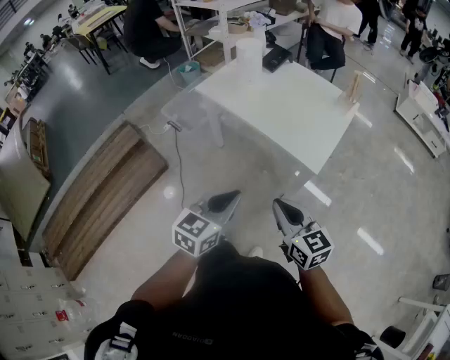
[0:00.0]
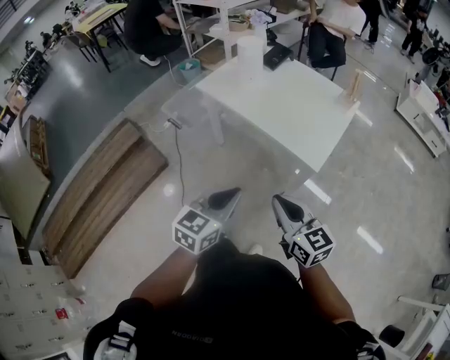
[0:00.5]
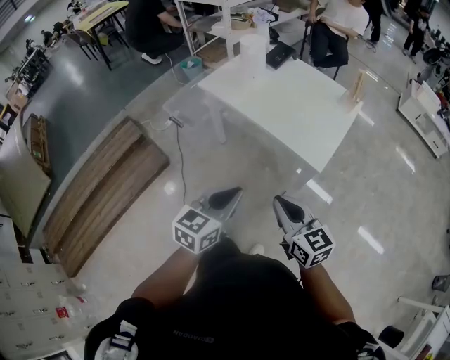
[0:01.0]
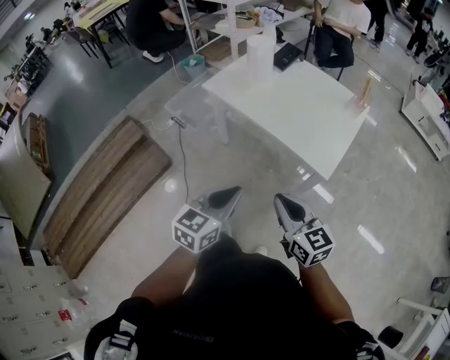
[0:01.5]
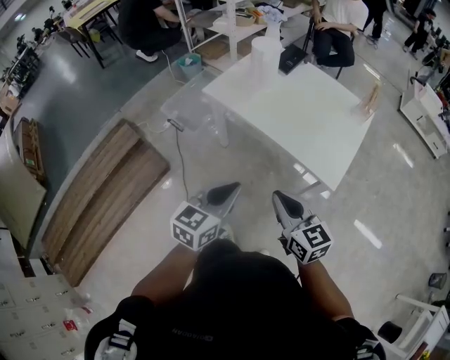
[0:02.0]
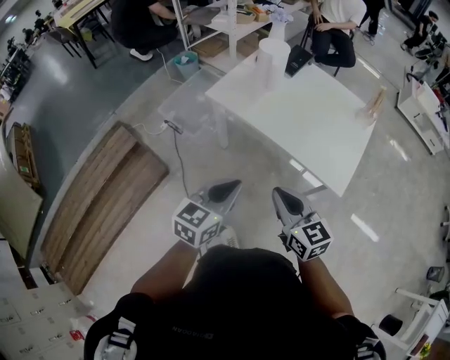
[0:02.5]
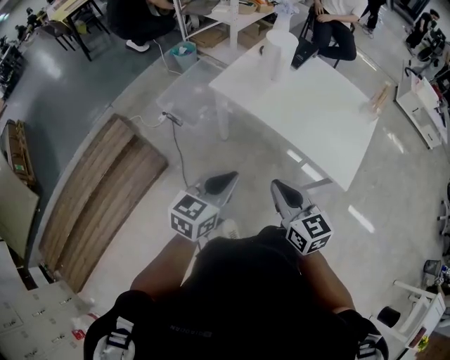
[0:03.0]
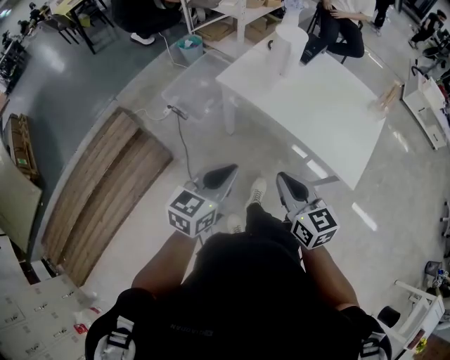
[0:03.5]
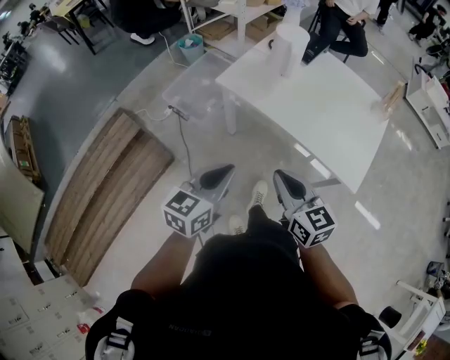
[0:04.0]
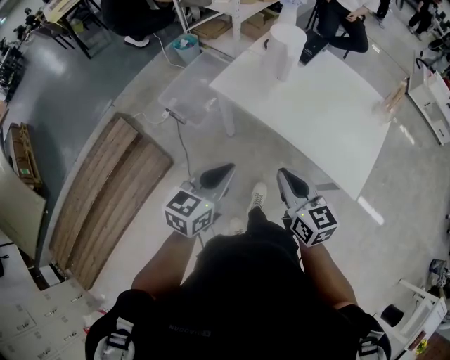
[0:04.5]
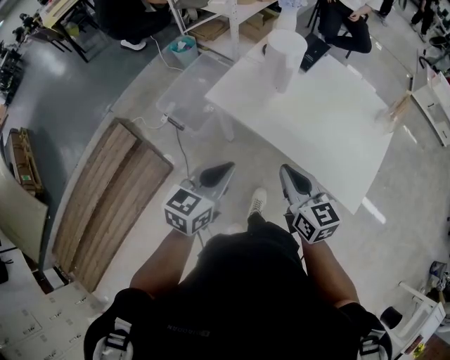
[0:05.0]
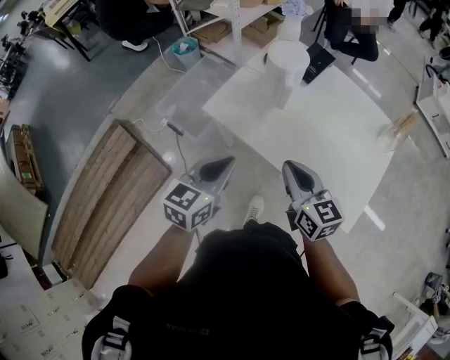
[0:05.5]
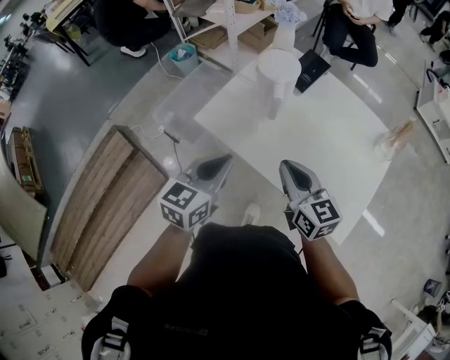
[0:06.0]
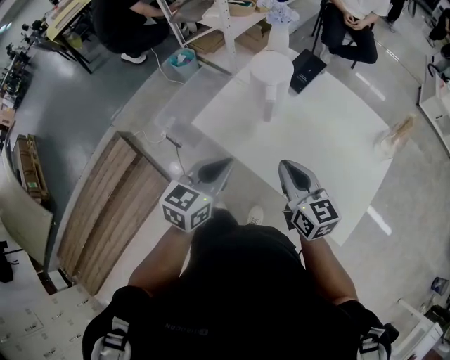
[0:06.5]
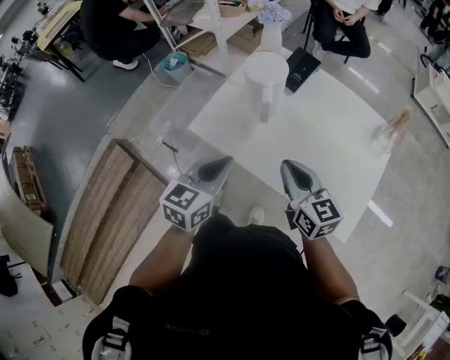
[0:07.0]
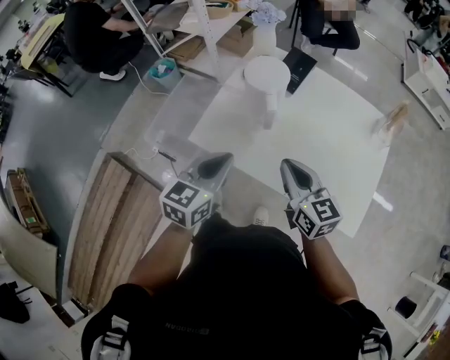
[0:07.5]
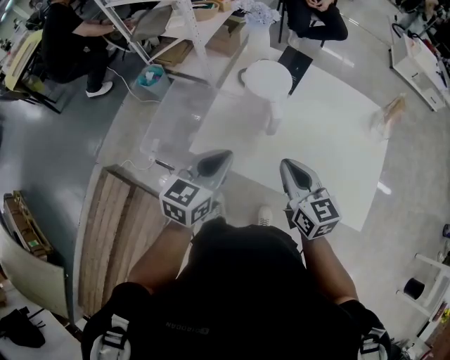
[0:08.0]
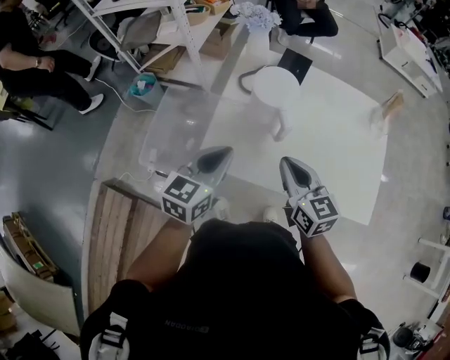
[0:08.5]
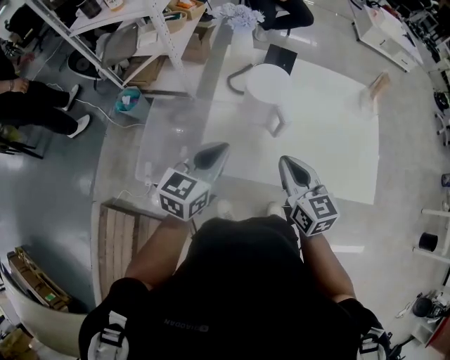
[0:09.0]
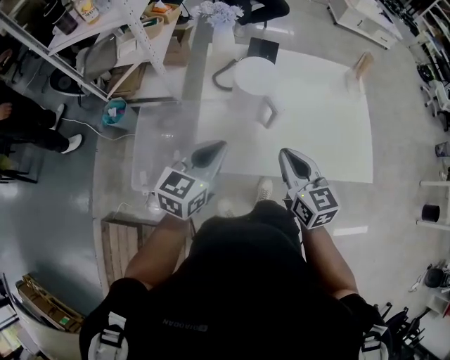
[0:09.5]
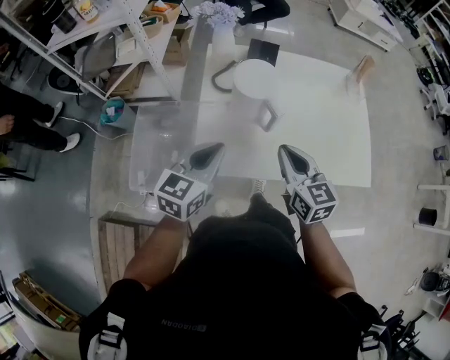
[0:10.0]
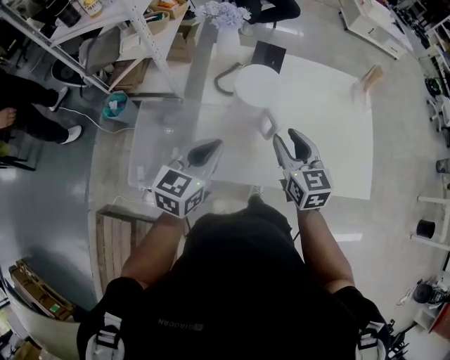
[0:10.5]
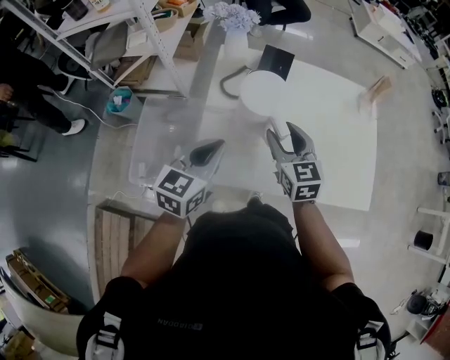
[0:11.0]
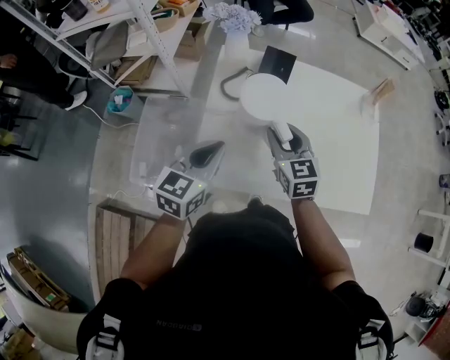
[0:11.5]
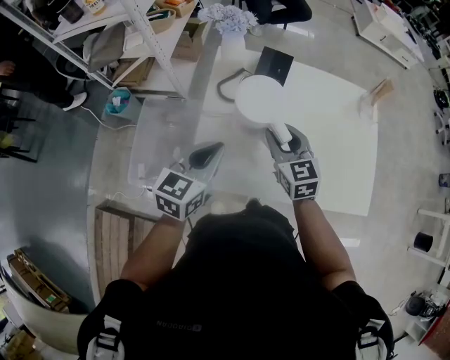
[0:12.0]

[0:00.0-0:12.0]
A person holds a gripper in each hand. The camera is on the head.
0:00.0 to 0:02.0: The grippers both shift forward and to the left by about 15 cm.
0:02.0 to 0:04.0: Both grippers travel together to the left and forward, roughly 15 cm.
0:04.0 to 0:06.0: Both grippers move forward, some 25 cm.
0:06.0 to 0:08.0: The right gripper goes some 5 cm forward; the left gripper goes approximately 10 cm forward.
0:08.0 to 0:10.0: Both grippers travel together to the left, about 5 cm. The right gripper changes its angle by approximately 20 degrees.
0:10.0 to 0:12.0: The right gripper goes roughly 15 cm forward, and opens. Meanwhile the left gripper heads forward, covering approximately 5 cm.

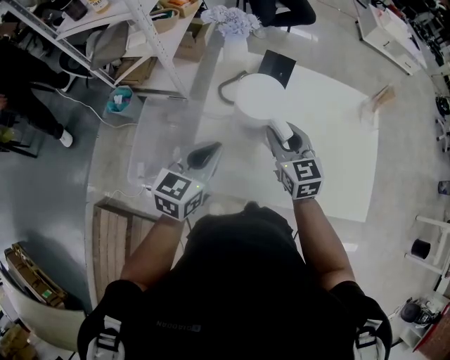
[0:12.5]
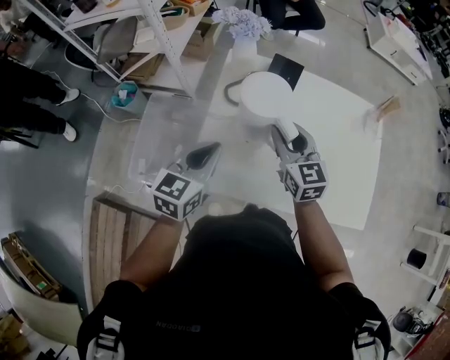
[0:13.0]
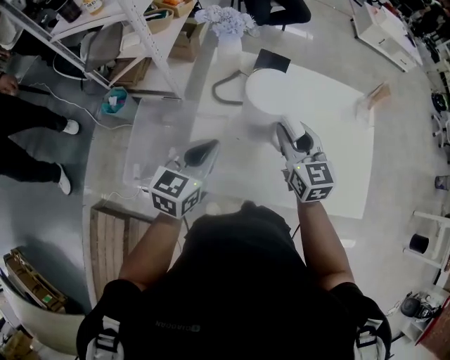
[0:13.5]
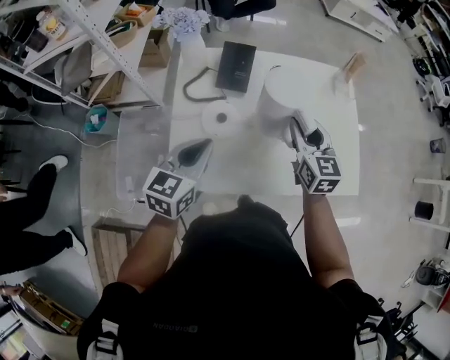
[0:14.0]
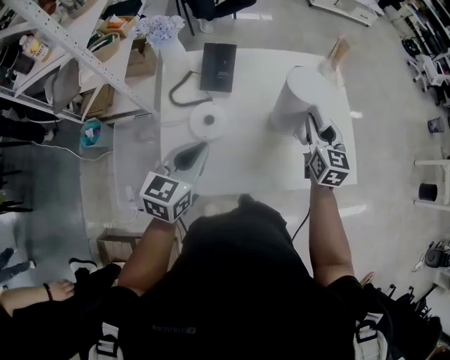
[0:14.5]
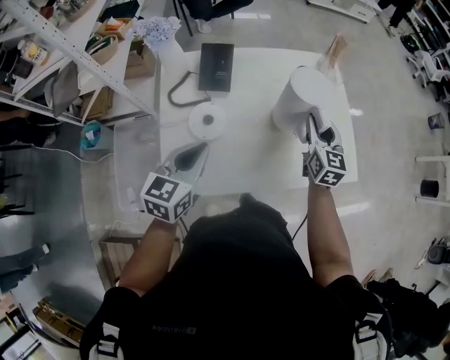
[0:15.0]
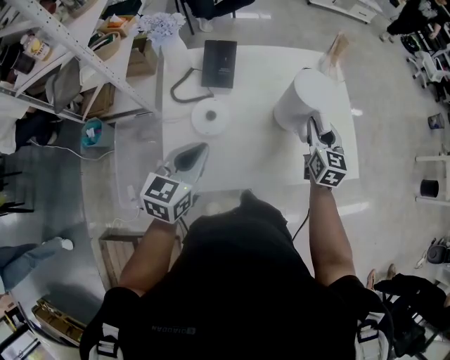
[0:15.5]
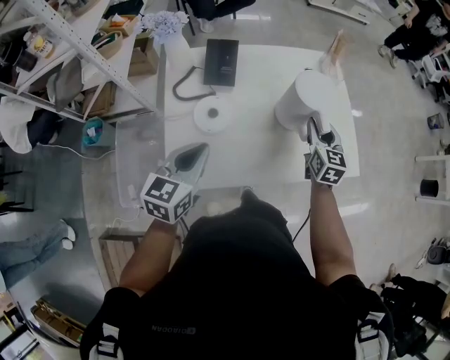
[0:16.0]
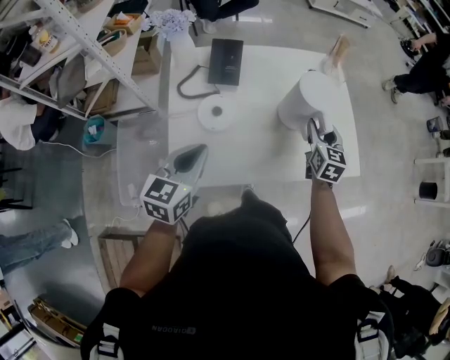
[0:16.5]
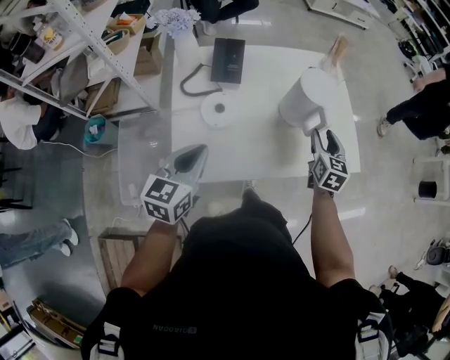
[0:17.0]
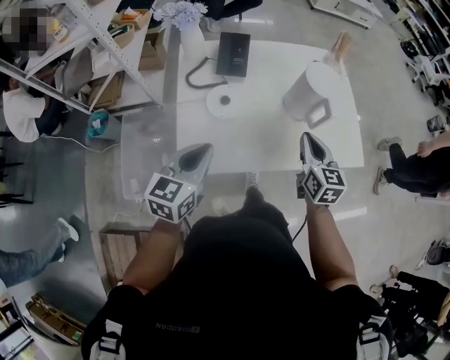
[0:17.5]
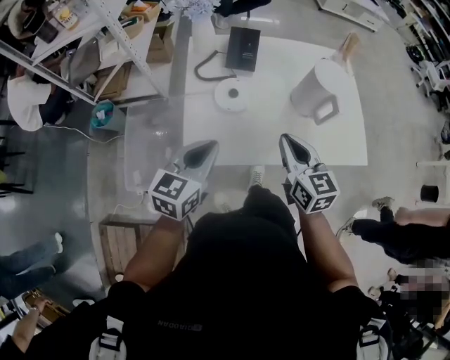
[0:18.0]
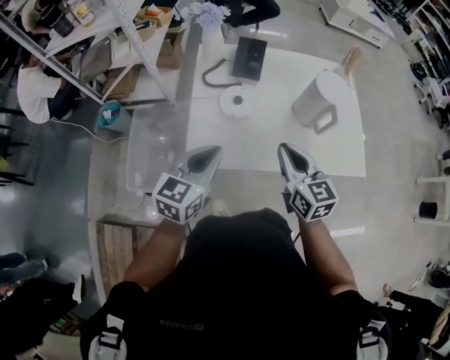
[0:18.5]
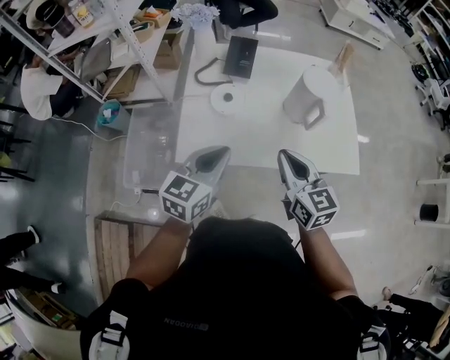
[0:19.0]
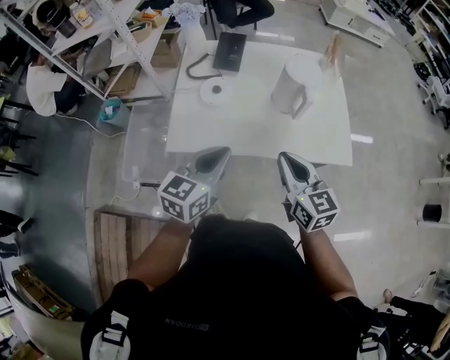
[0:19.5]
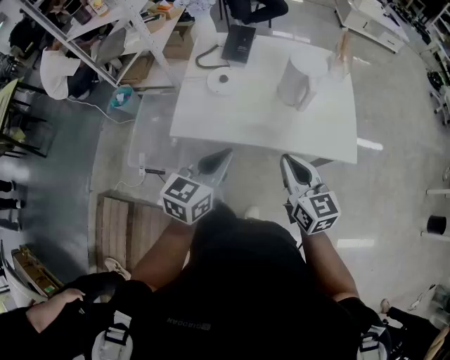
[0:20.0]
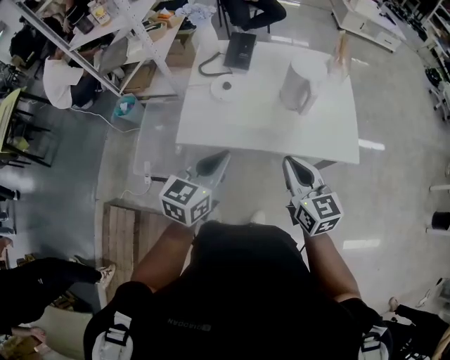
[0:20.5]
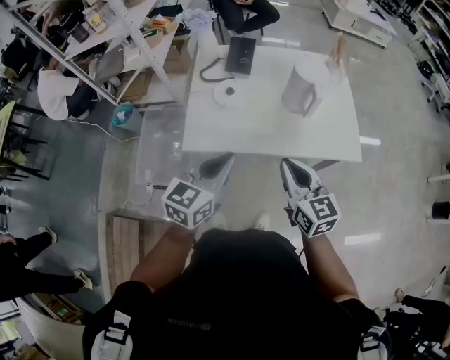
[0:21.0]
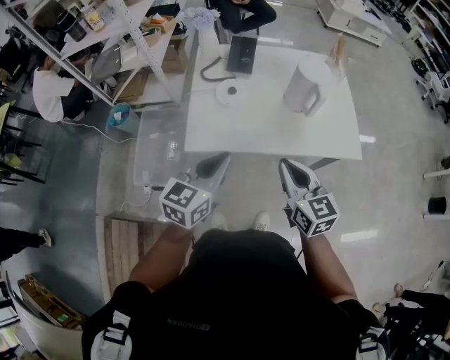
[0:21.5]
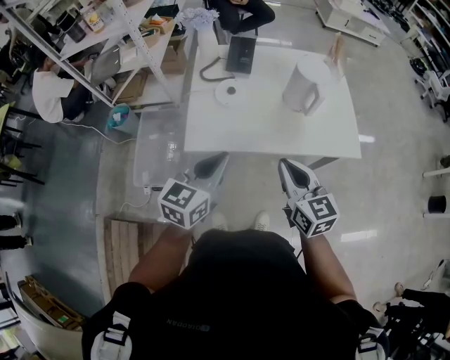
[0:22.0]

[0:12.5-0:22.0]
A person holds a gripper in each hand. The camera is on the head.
0:12.5 to 0:14.5: The right gripper moves to the right, approximately 25 cm, and swivels some 30 degrees, while the left gripper shifts roughly 10 cm to the right.
0:14.5 to 0:16.5: The right gripper changes place by approximately 5 cm, while the left gripper moves backward, roughly 5 cm.
0:16.5 to 0:18.0: The left gripper moves backward, some 10 cm. Meanwhile the right gripper travels backward and to the left by about 25 cm, changes its angle by some 30 degrees, and closes up.
0:18.0 to 0:20.0: The right gripper goes roughly 20 cm backward and to the right. Meanwhile the left gripper travels to the right and backward by about 20 cm.
0:20.0 to 0:22.0: The grippers both shift to the left by some 10 cm.

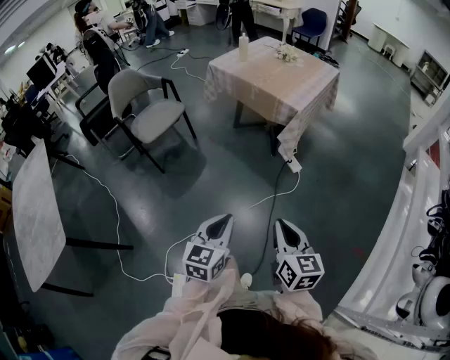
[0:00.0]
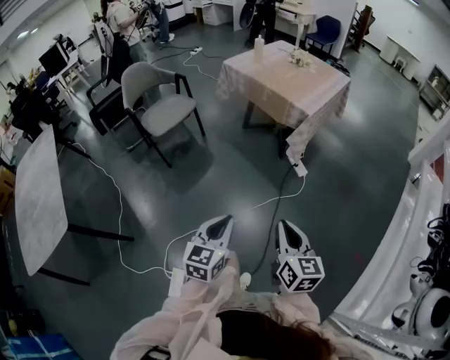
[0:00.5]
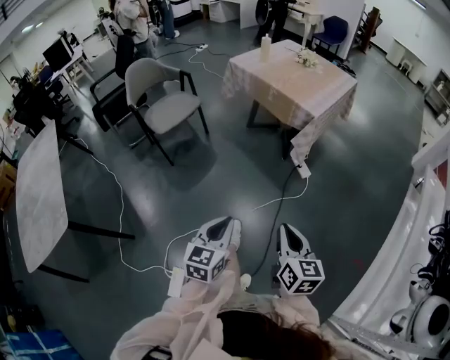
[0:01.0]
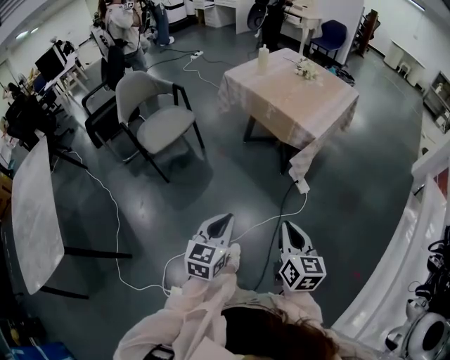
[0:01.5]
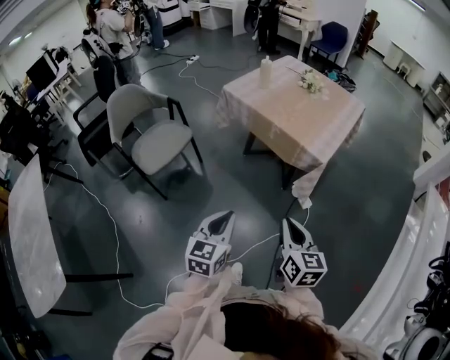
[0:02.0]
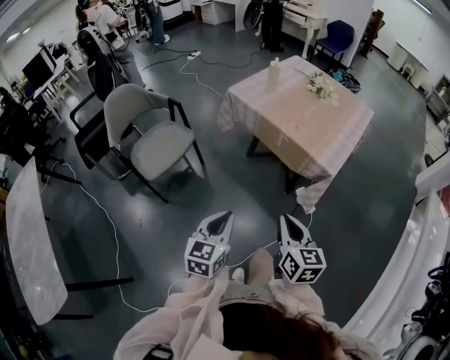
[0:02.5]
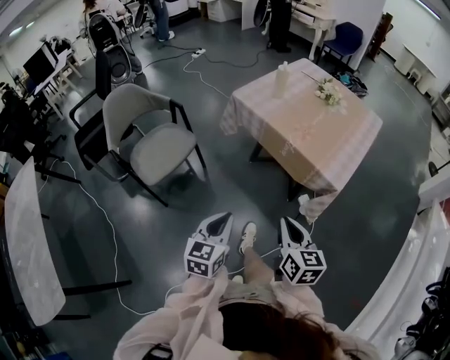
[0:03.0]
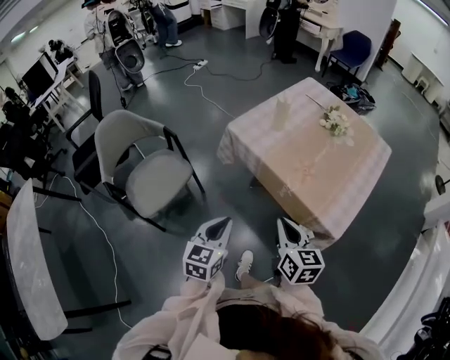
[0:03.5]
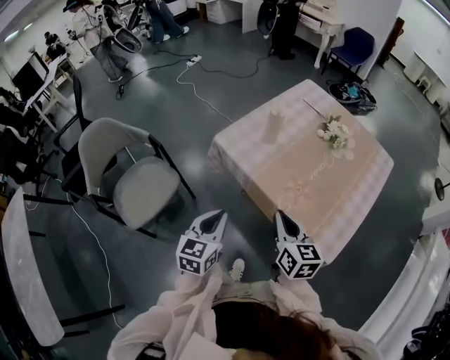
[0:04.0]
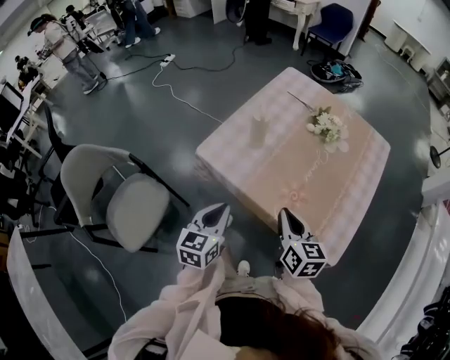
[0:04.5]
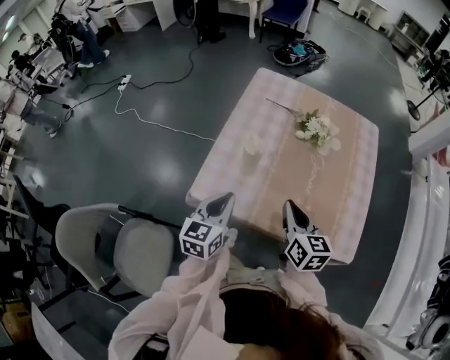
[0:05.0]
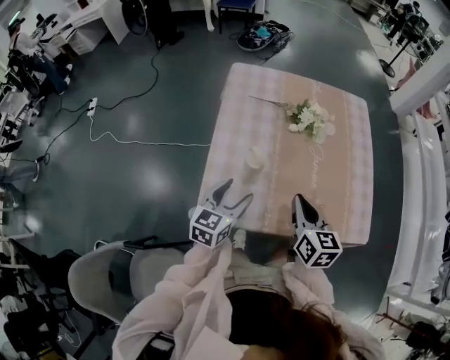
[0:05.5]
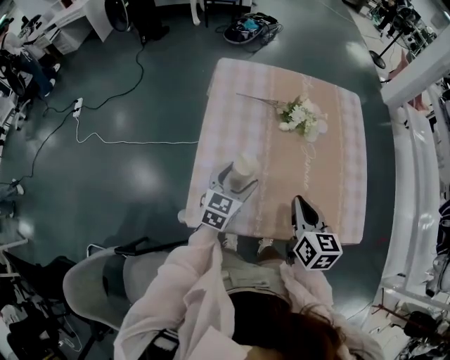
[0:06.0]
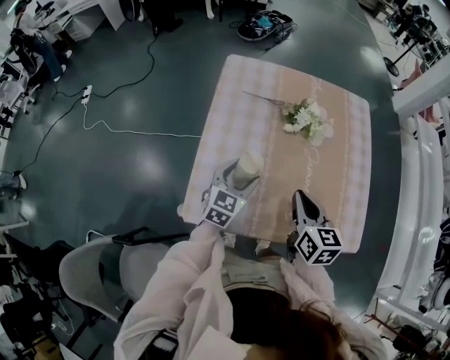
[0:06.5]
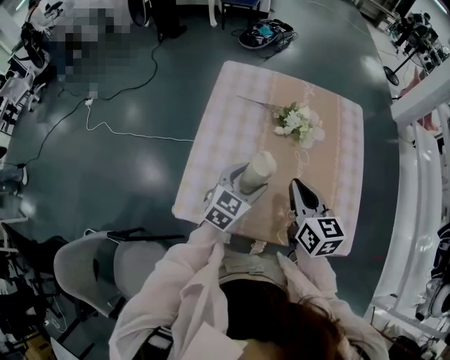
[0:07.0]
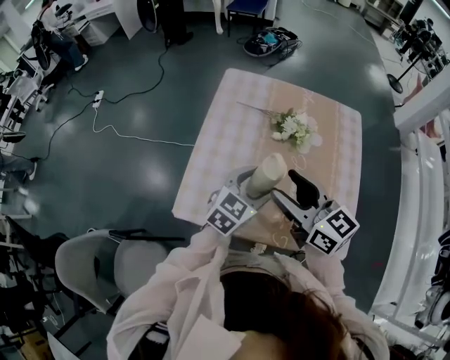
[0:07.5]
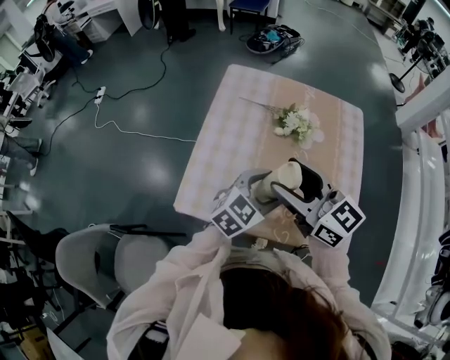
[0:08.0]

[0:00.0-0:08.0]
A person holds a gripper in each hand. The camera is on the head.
0:00.0 to 0:02.0: Both grippers travel together forward, roughly 25 cm.
0:02.0 to 0:04.0: The pair of grippers is taken forward, approximately 40 cm.
0:04.0 to 0:06.0: The left gripper ends up approximately 40 cm from where it was, turns by about 50 degrees, and opens its fingers, while the right gripper shifts by some 20 cm, and changes its angle by some 40 degrees.
0:06.0 to 0:08.0: The left gripper goes about 15 cm to the right and upward; the right gripper shifts some 15 cm upward, changes its angle by roughly 50 degrees, and opens up.
